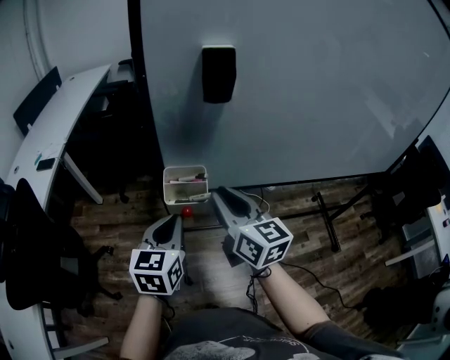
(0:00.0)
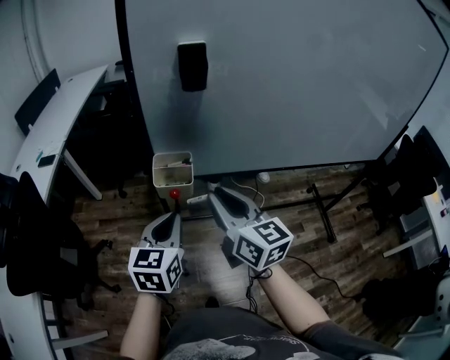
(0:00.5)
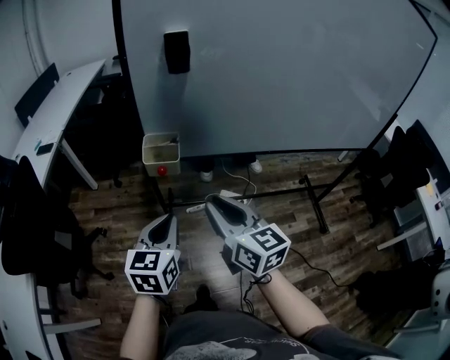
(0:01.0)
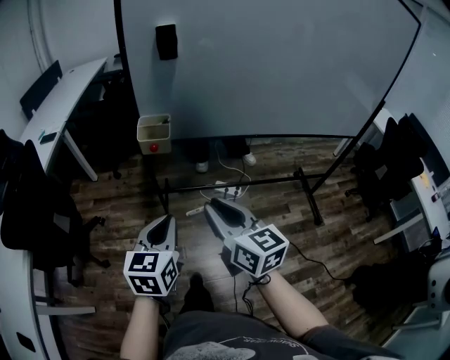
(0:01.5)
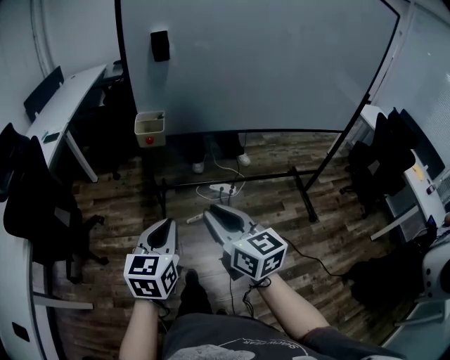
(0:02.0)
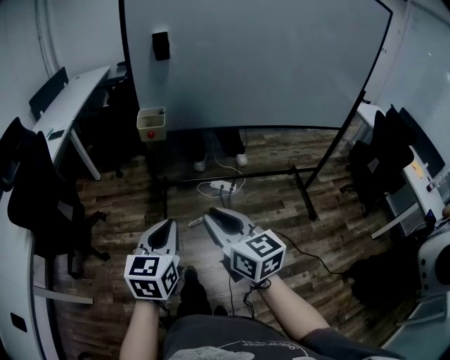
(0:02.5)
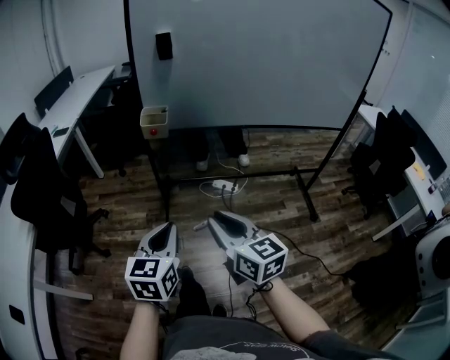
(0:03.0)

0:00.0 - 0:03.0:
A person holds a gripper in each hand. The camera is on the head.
0:00.0 - 0:01.5: Both grippers move backward, about 25 cm.
0:01.5 - 0:03.0: Both grippers travel together backward, approximately 15 cm.

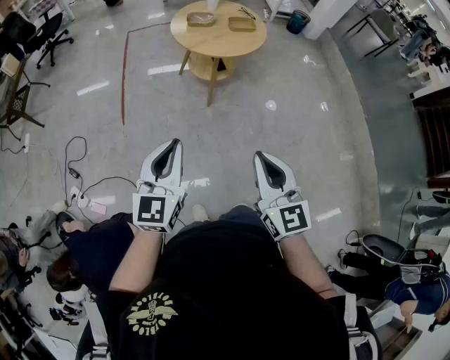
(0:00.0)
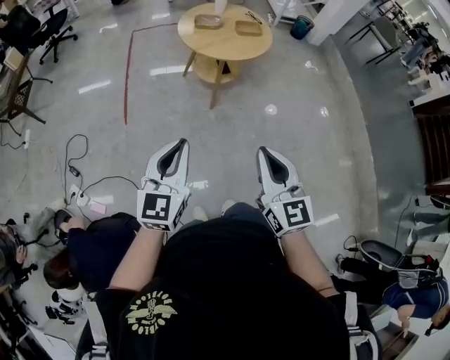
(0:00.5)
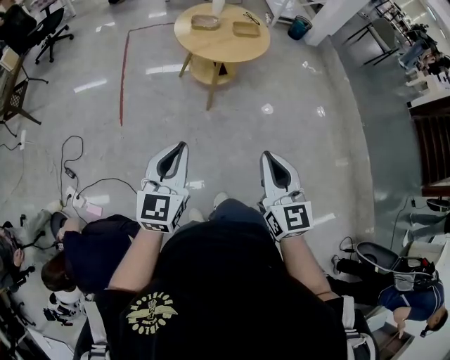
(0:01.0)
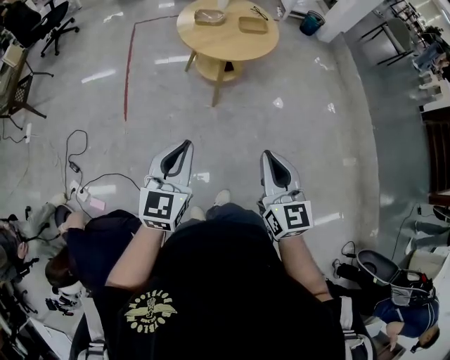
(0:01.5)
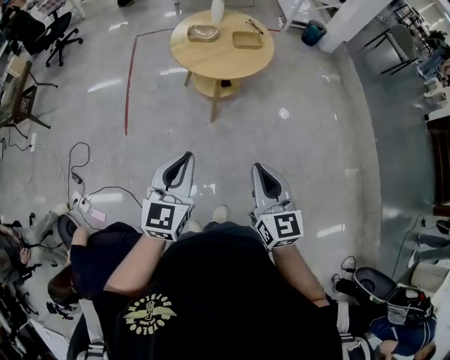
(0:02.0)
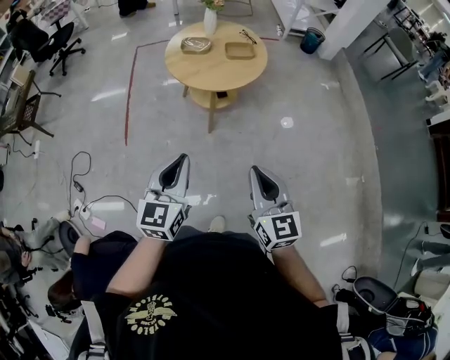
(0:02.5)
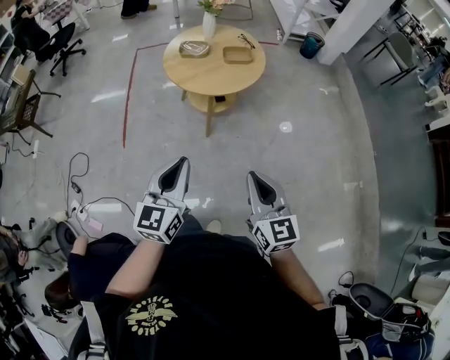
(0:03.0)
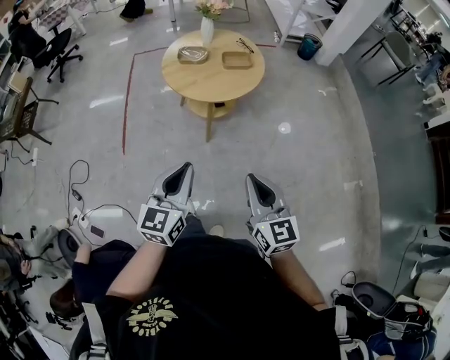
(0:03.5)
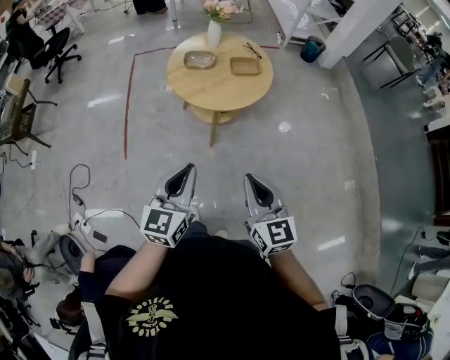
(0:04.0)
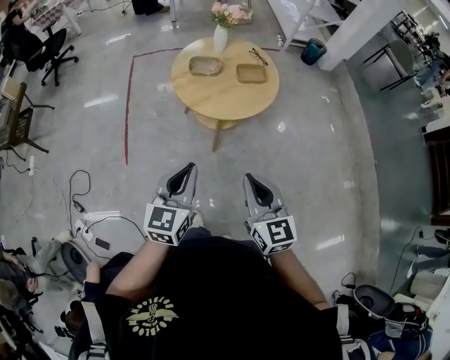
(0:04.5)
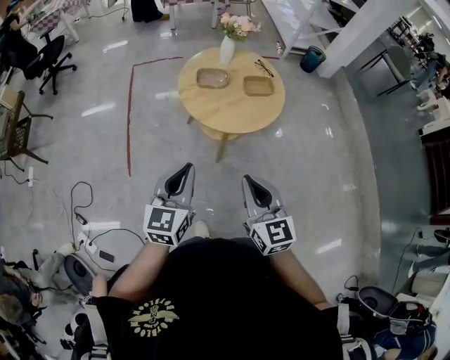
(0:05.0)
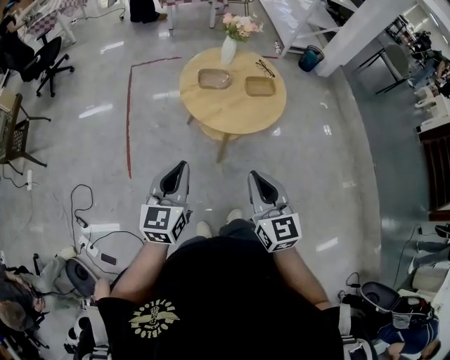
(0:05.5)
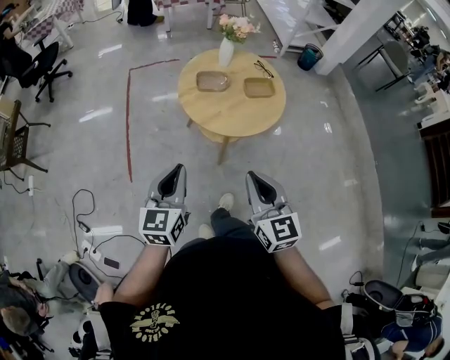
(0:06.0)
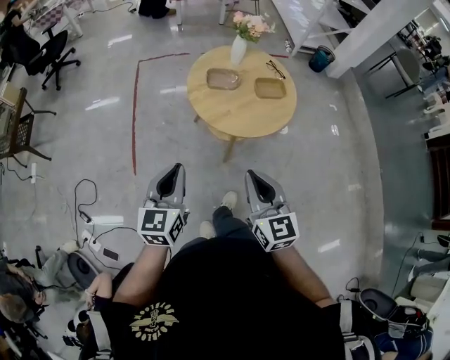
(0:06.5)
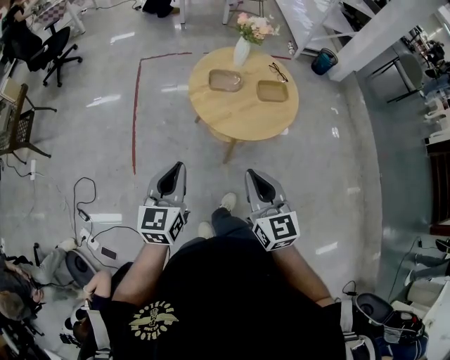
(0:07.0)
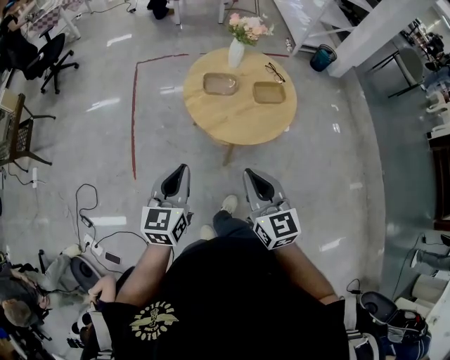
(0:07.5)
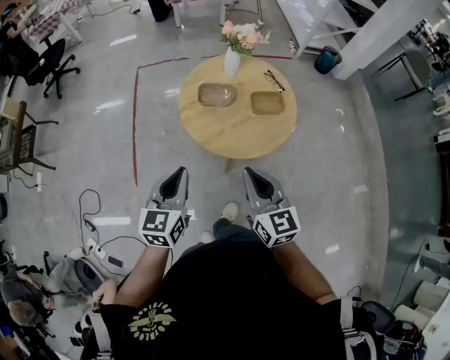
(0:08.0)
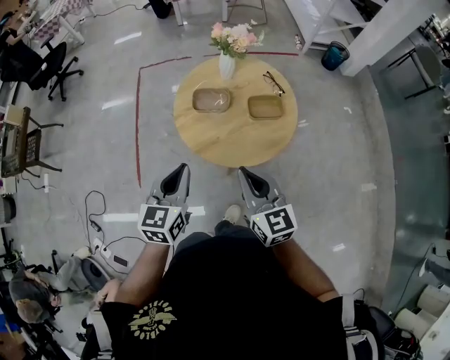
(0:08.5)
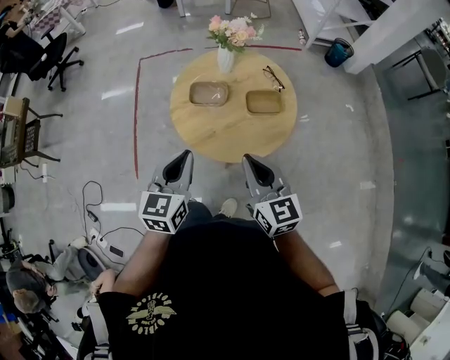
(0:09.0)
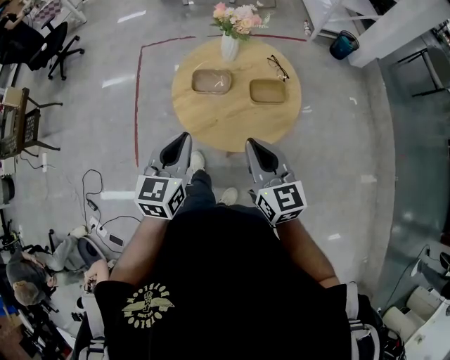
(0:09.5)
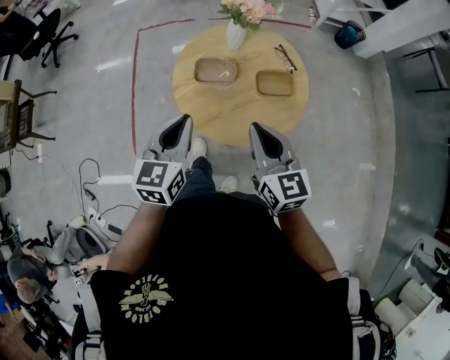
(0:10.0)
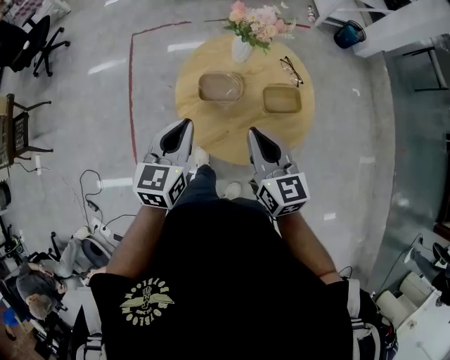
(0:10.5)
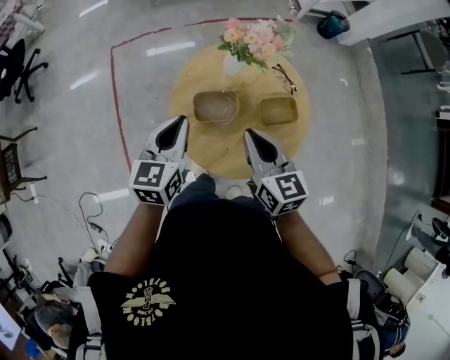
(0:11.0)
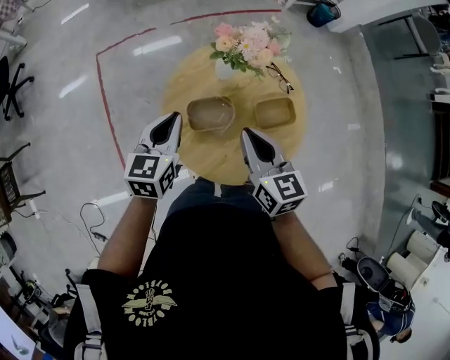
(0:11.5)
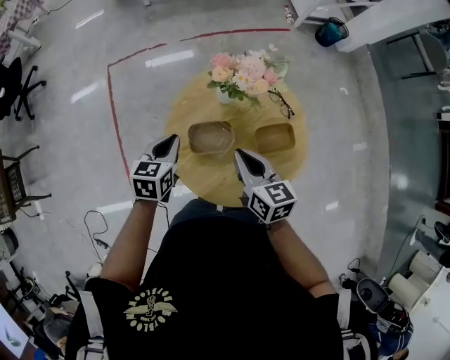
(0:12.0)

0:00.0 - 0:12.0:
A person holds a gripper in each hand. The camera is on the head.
0:00.0 - 0:02.0: Both grippers move forward and to the right, some 15 cm.
0:02.0 - 0:04.0: The grippers both shift forward by roughly 10 cm.
0:04.0 - 0:06.0: Both grippers travel together to the left and forward, some 20 cm.
0:06.0 - 0:08.0: Both grippers travel together forward, some 15 cm.
0:08.0 - 0:10.0: The right gripper shifts approximately 15 cm forward. The left gripper goes some 15 cm forward and to the right.
0:10.0 - 0:12.0: The two grippers go approximately 25 cm forward and downward. The left gripper turns by roughly 20 degrees, while the right gripper rotates roughly 20 degrees.

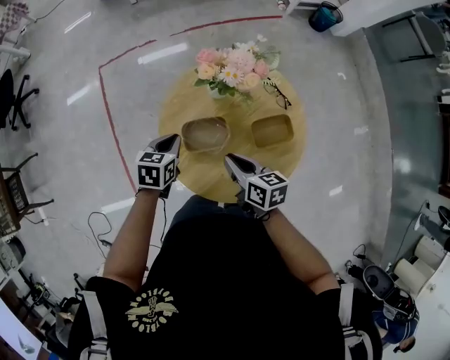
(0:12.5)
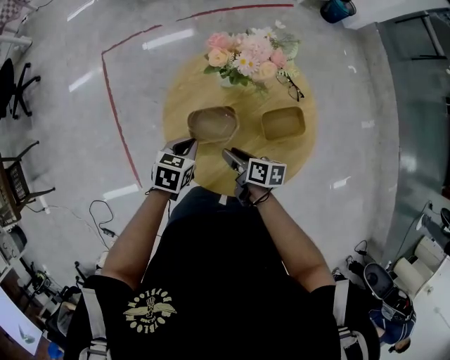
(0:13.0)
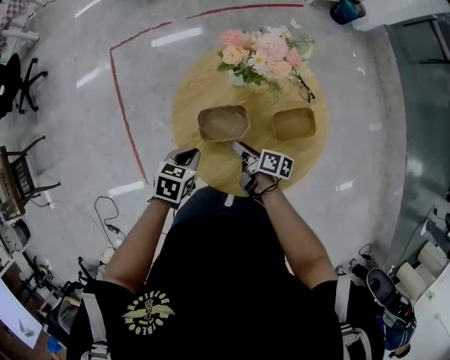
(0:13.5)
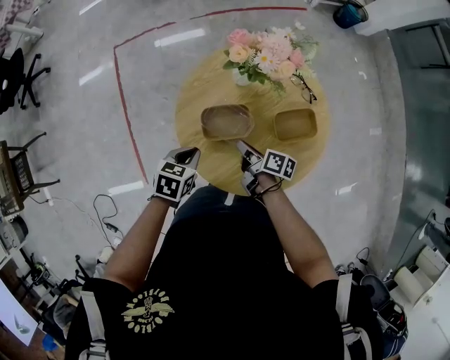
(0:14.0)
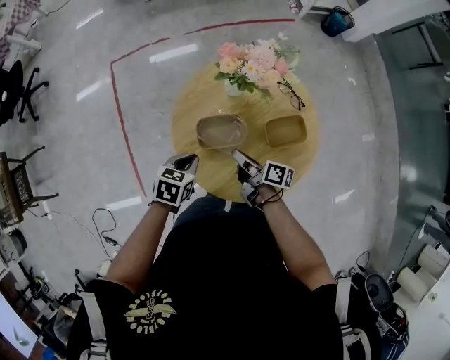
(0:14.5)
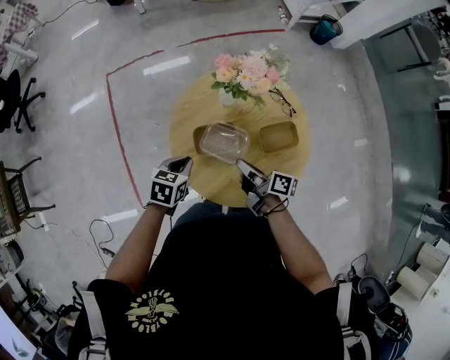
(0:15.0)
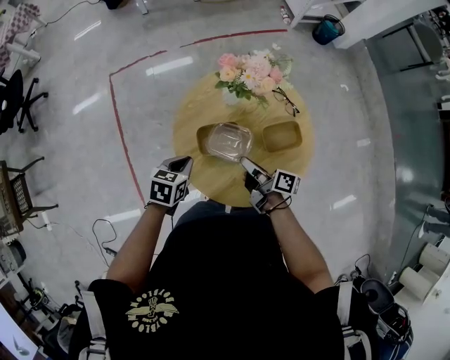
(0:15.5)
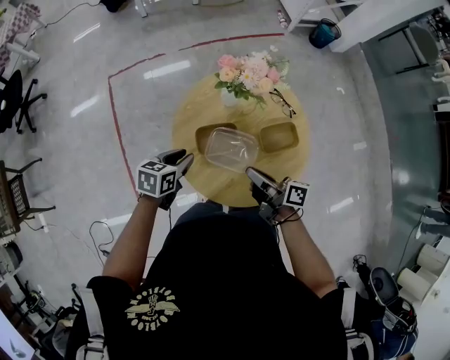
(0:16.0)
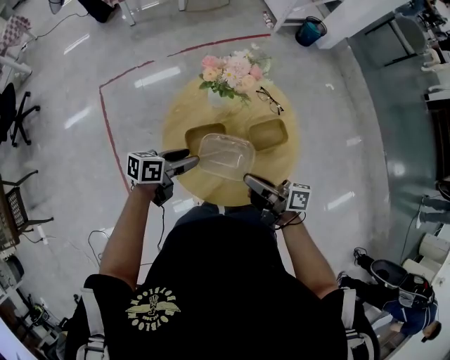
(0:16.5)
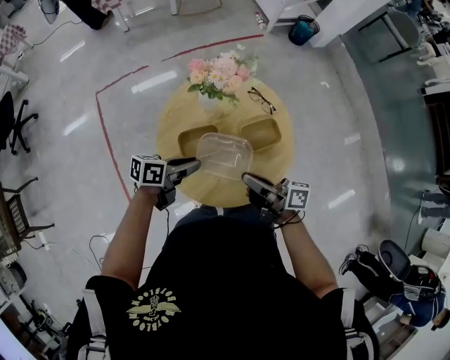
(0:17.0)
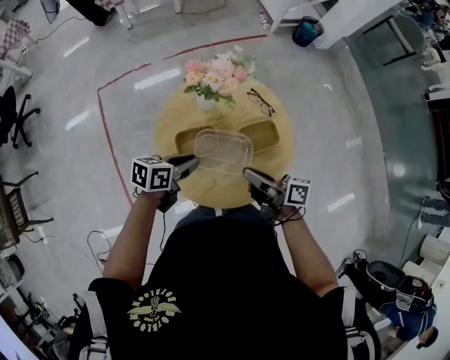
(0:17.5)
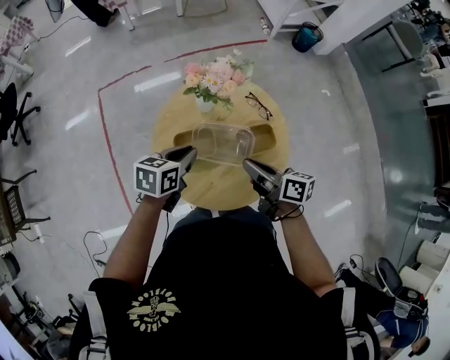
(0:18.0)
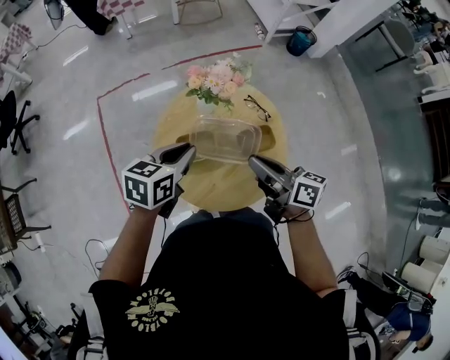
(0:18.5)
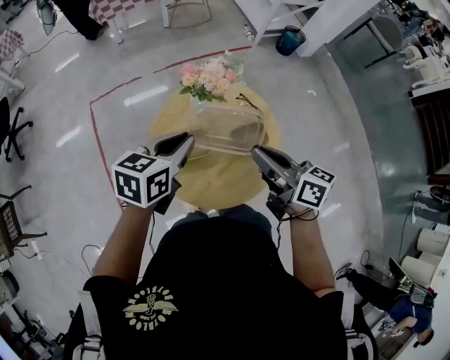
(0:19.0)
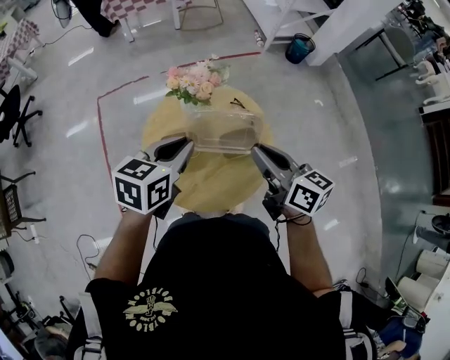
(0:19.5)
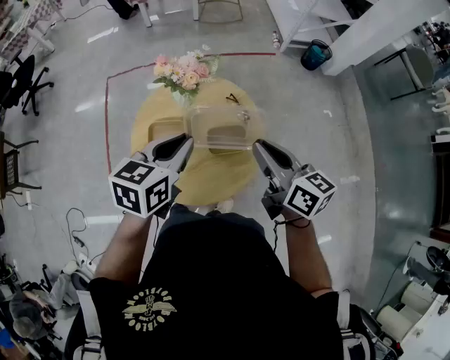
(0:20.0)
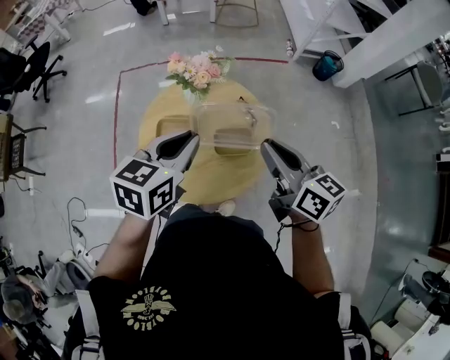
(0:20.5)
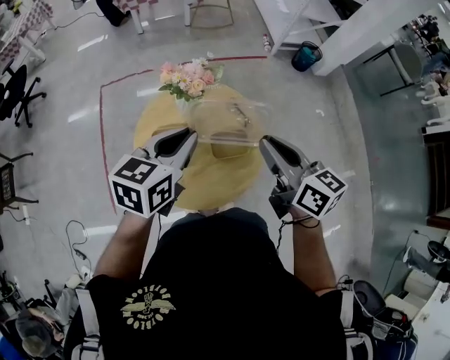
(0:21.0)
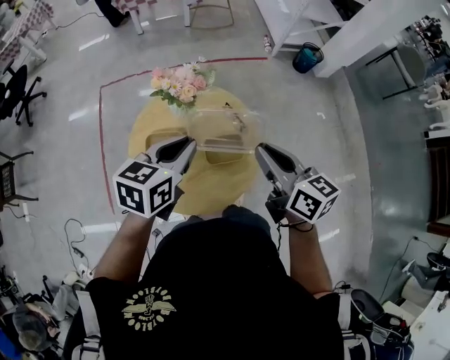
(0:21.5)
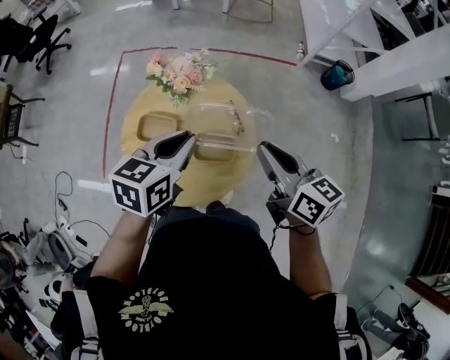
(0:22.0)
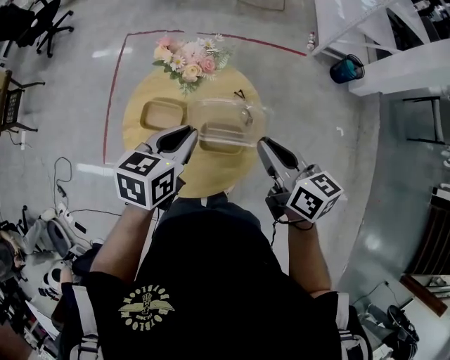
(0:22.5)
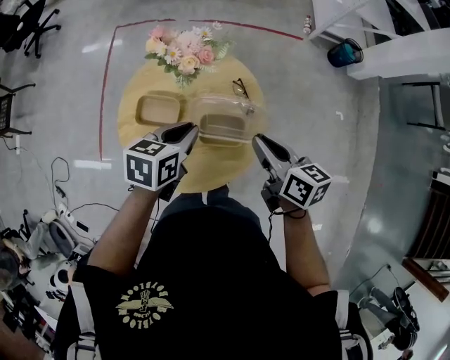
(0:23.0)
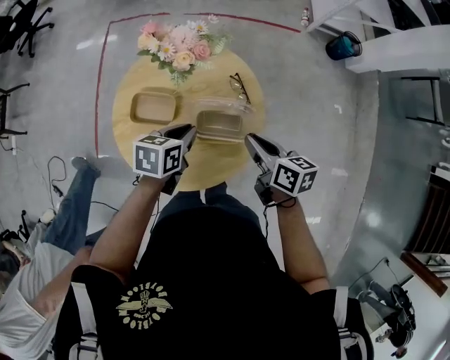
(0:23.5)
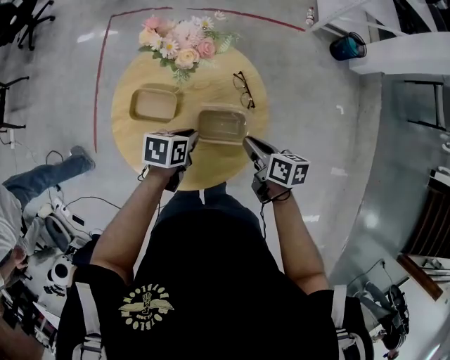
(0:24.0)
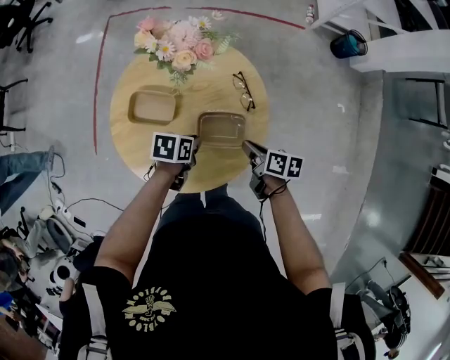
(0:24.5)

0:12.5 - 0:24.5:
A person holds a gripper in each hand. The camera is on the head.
0:12.5 - 0:14.5: The left gripper travels backward by approximately 10 cm, while the right gripper travels downward by some 10 cm, swivels roughly 40 degrees, and opens, then closes once more.
0:14.5 - 0:16.5: The right gripper goes roughly 15 cm upward and backward, and turns by about 20 degrees. The left gripper travels upward by about 5 cm, swivels approximately 40 degrees, and opens.
0:16.5 - 0:18.5: The right gripper heads upward and forward, covering some 10 cm, and rotates roughly 20 degrees; the left gripper is displaced upward by approximately 15 cm, rotates roughly 30 degrees, and closes up.
0:18.5 - 0:20.5: The grippers both shift to the right and upward by roughly 15 cm. The right gripper swivels about 20 degrees.
0:20.5 - 0:22.5: The right gripper shifts some 10 cm forward and downward. The left gripper shifts about 10 cm downward and forward.
0:22.5 - 0:24.5: The grippers both shift downward by some 30 cm. The left gripper rotates about 40 degrees. The right gripper rotates roughly 40 degrees.
